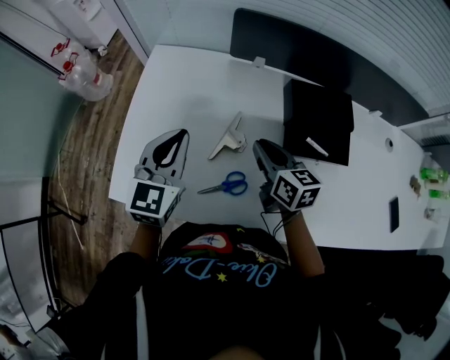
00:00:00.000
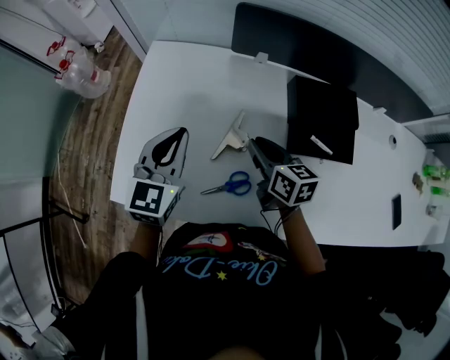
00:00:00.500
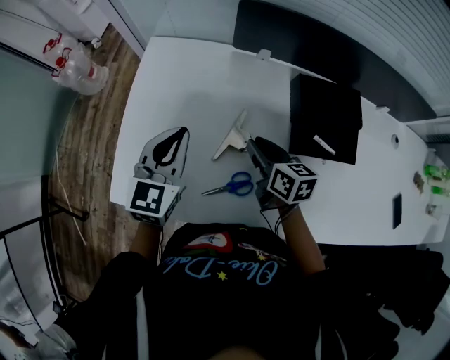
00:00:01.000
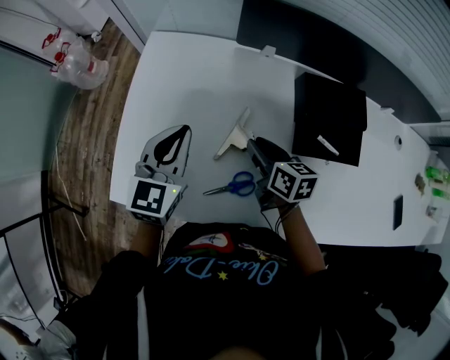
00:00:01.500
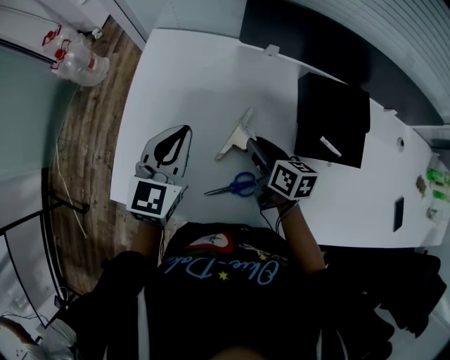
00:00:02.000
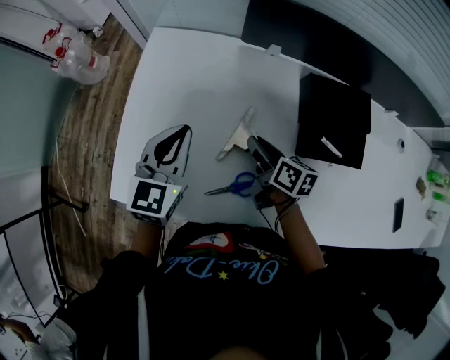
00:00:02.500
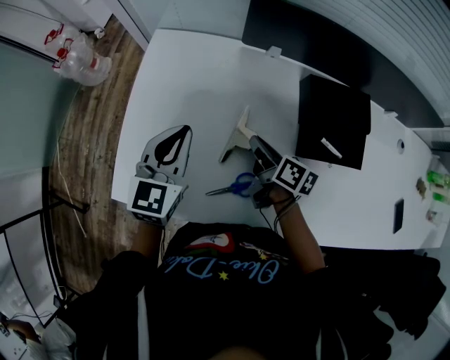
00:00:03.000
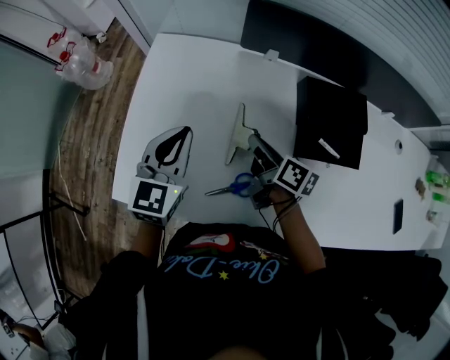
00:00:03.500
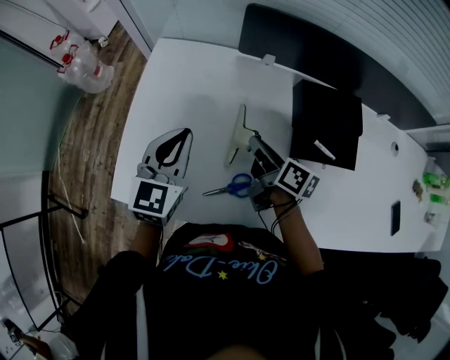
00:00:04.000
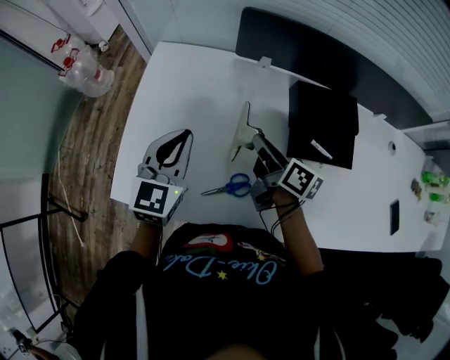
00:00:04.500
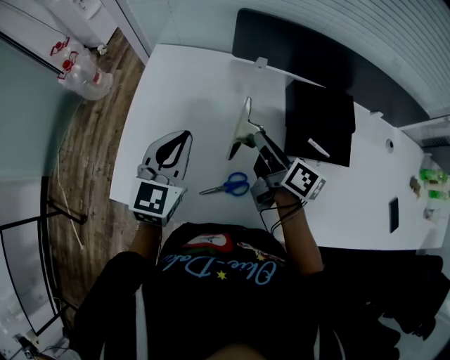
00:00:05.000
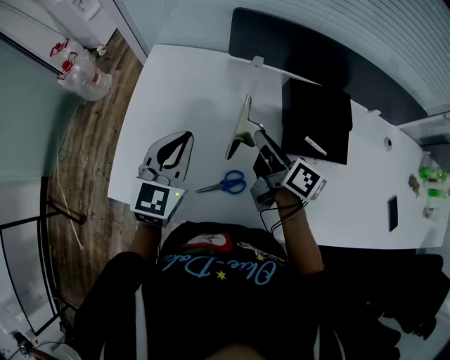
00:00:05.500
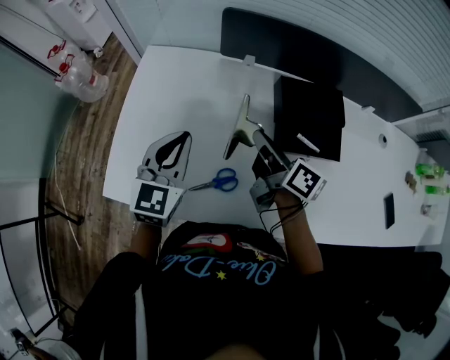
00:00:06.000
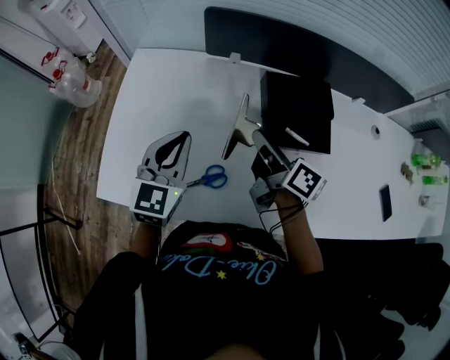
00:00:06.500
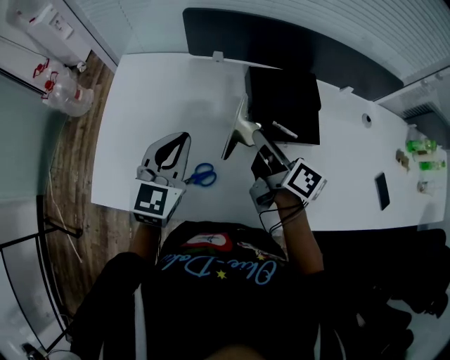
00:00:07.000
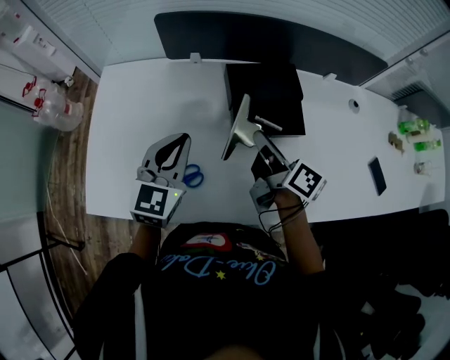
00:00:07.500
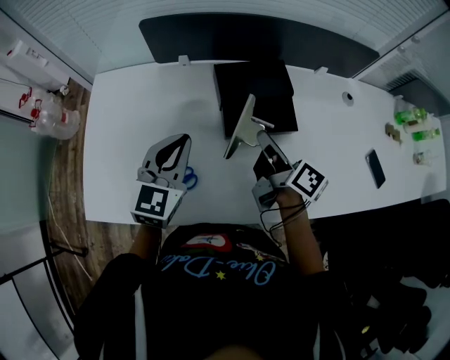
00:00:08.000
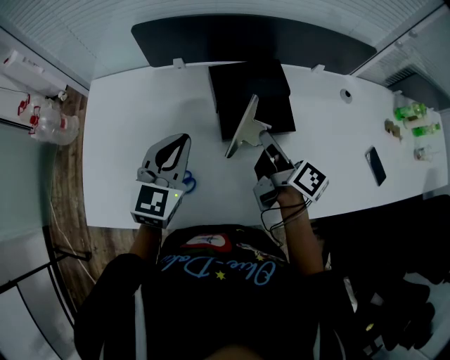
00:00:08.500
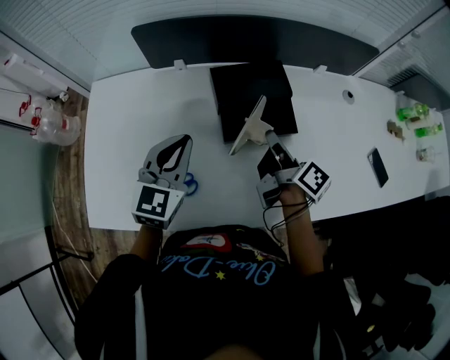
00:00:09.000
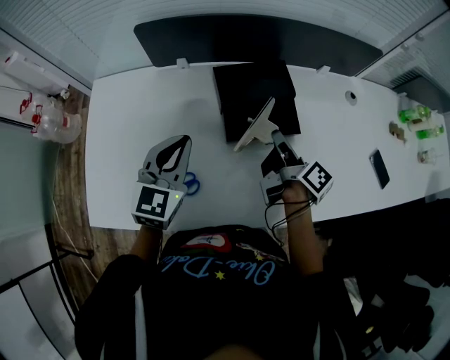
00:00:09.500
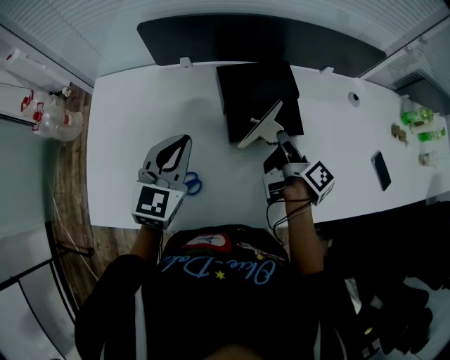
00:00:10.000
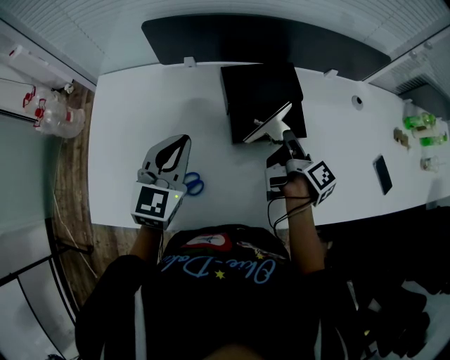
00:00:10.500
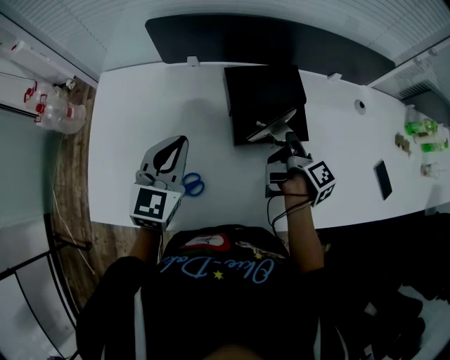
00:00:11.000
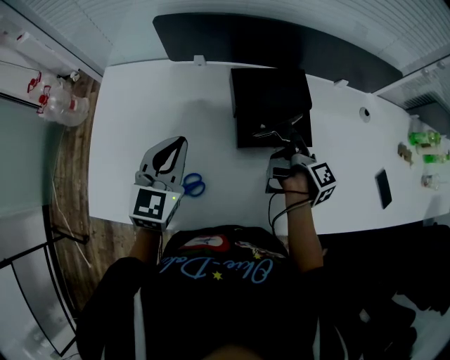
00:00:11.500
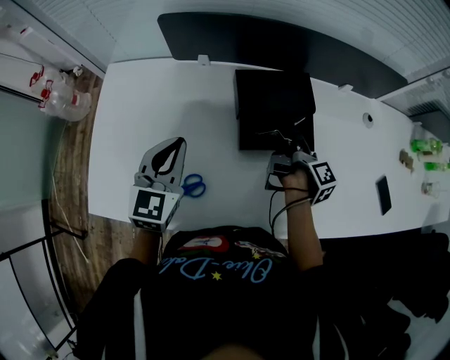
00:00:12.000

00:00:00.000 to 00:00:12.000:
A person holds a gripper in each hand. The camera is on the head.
00:00:00.000 to 00:00:02.000: The left gripper moves some 5 cm, while the right gripper travels downward by approximately 5 cm.
00:00:02.000 to 00:00:04.000: The right gripper changes its angle by approximately 20 degrees, and closes up.
00:00:04.000 to 00:00:06.000: The right gripper heads upward, covering roughly 10 cm.
00:00:06.000 to 00:00:08.000: The grippers both shift to the right by some 15 cm.
00:00:08.000 to 00:00:10.000: The right gripper is displaced to the right by about 5 cm, and rotates some 30 degrees.
00:00:10.000 to 00:00:12.000: The right gripper changes place by about 5 cm, and changes its angle by approximately 20 degrees.

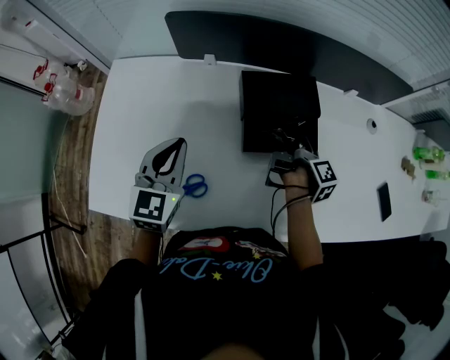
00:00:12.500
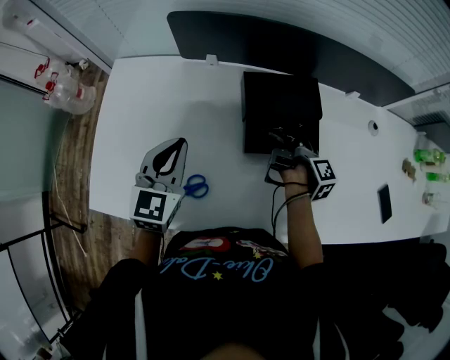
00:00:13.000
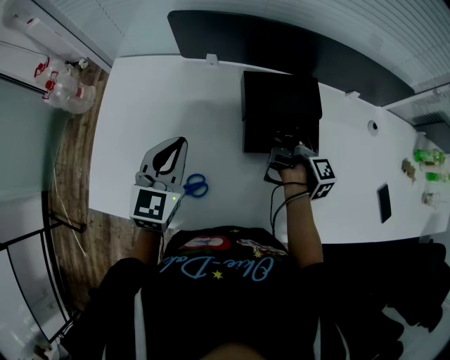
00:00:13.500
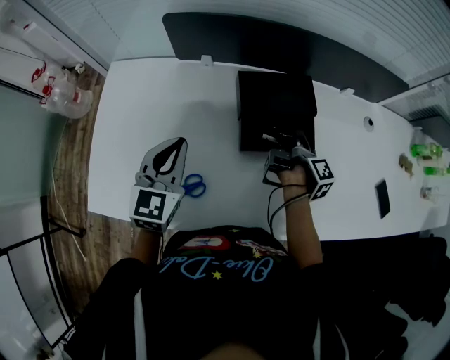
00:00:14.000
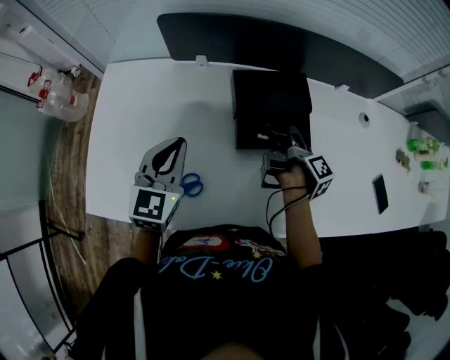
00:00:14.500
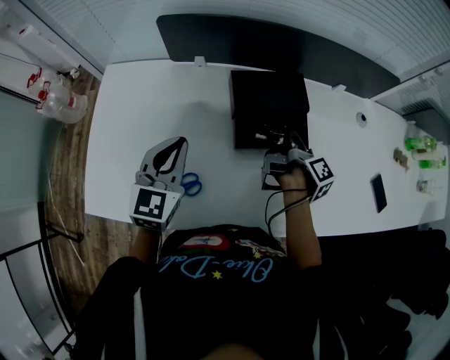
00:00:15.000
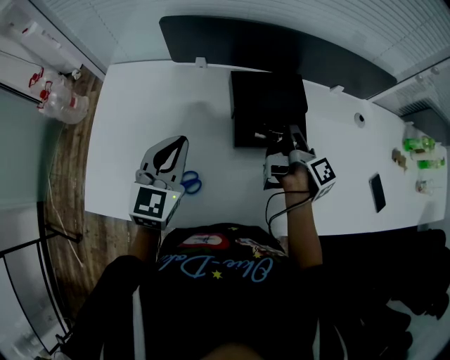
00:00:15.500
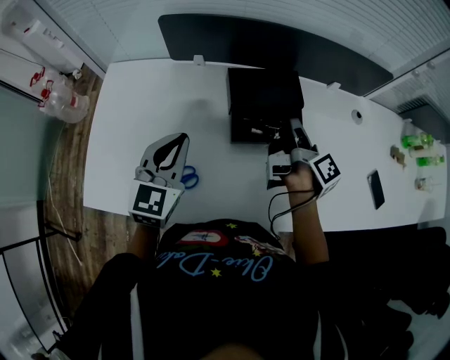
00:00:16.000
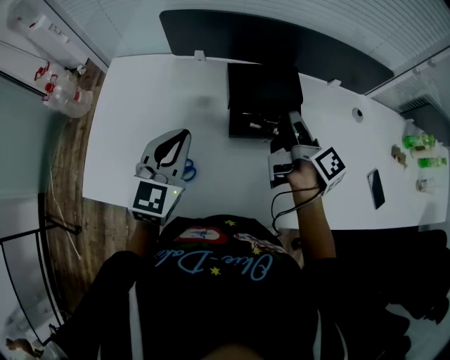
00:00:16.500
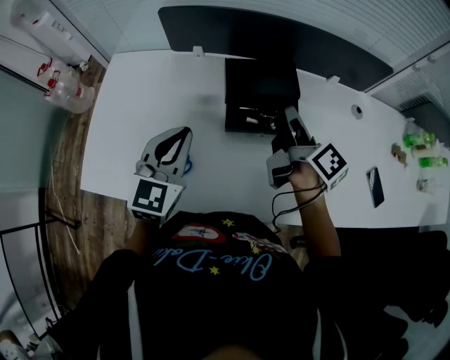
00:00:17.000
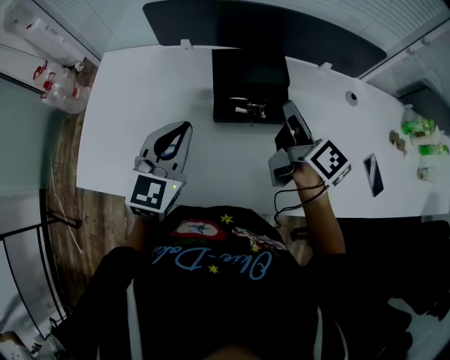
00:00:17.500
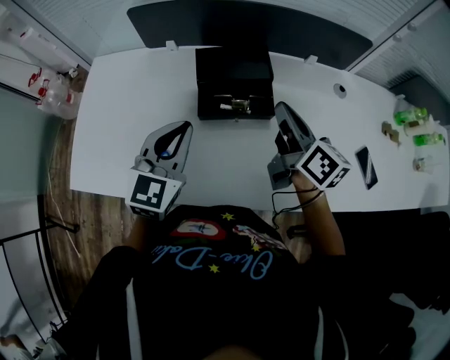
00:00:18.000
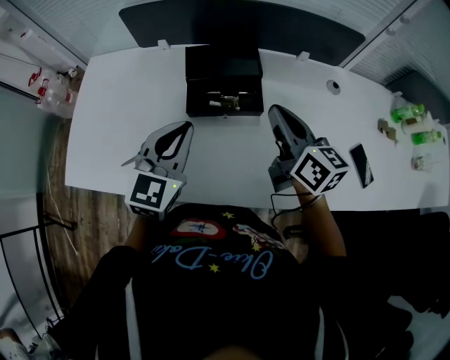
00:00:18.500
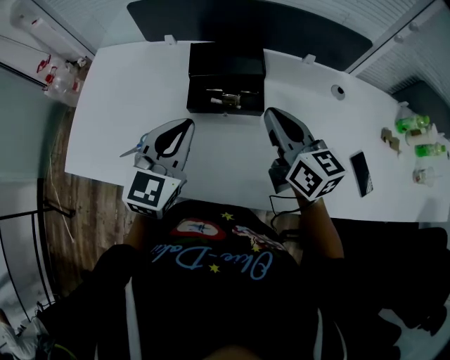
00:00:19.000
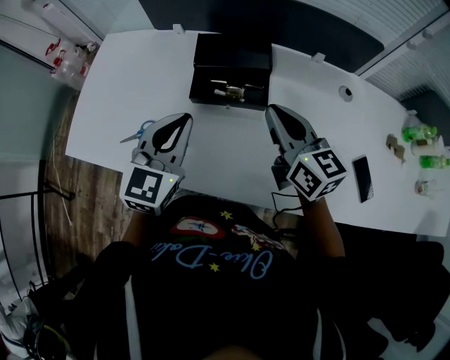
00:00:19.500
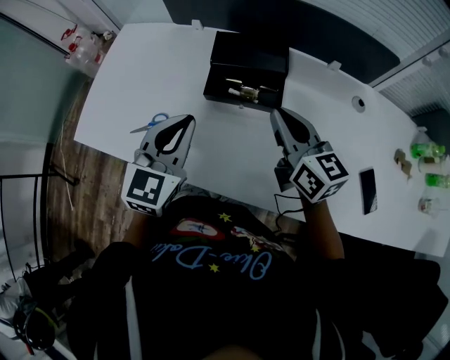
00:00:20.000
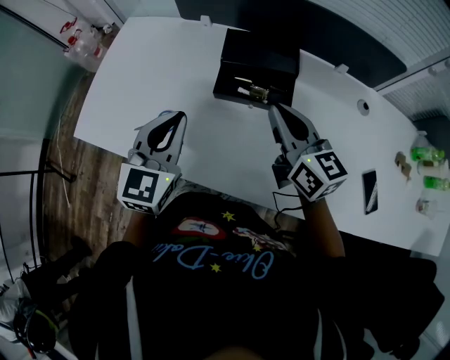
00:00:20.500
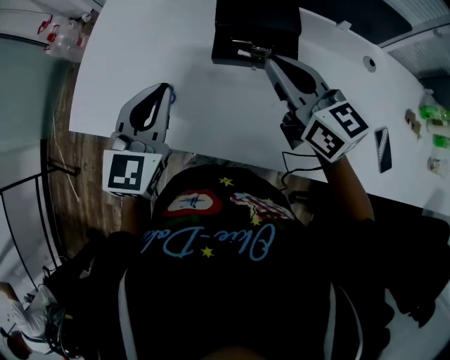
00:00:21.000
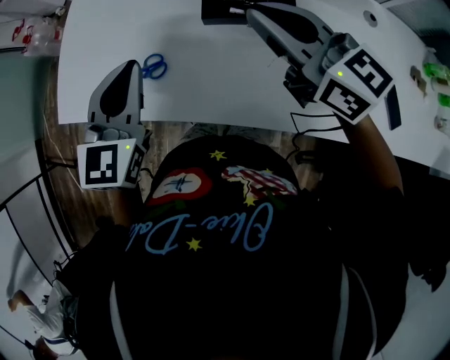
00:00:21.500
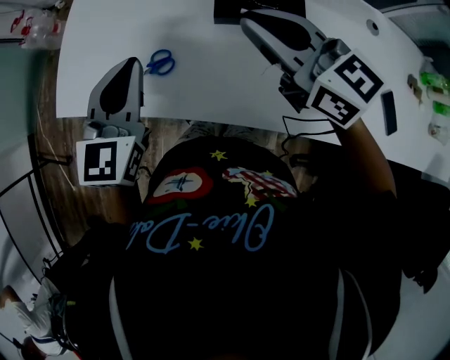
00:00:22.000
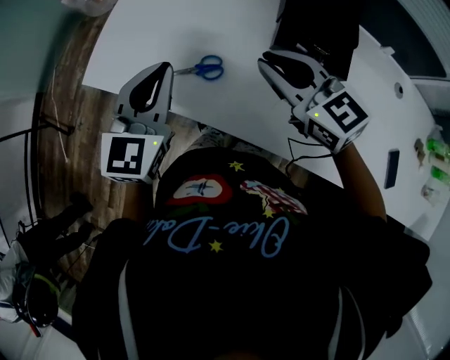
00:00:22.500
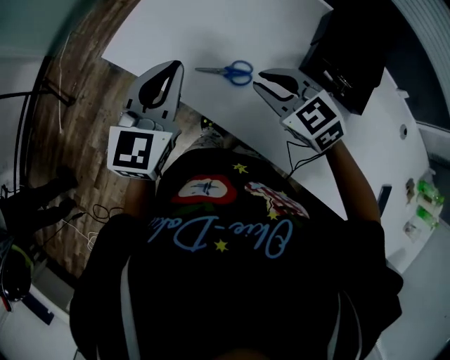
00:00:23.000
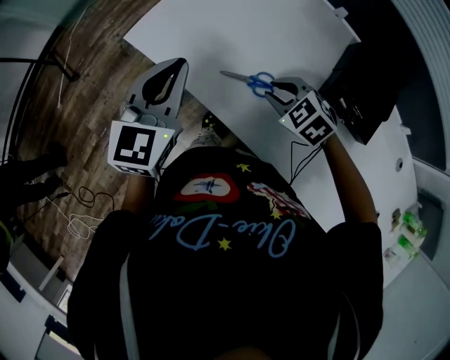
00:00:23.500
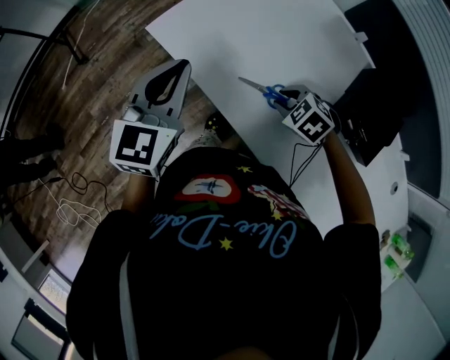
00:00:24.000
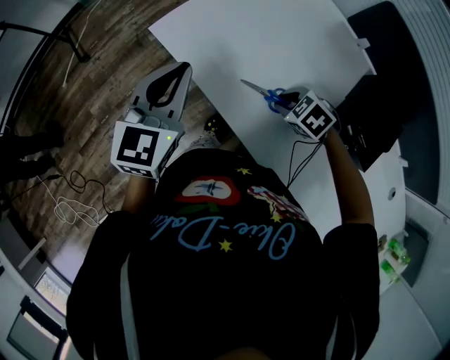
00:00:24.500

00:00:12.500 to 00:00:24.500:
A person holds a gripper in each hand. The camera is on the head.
00:00:12.500 to 00:00:14.500: The right gripper opens.
00:00:14.500 to 00:00:16.500: The right gripper goes approximately 10 cm upward, rotates some 30 degrees, and closes. The left gripper moves about 5 cm.
00:00:16.500 to 00:00:18.500: The right gripper travels backward and to the right by about 10 cm, and rotates around the line of its fingers by about 50 degrees, counterclockwise from behind. The left gripper goes some 15 cm to the right.
00:00:18.500 to 00:00:20.500: Both grippers travel together to the left, about 5 cm.
00:00:20.500 to 00:00:22.500: Both grippers move to the left, some 15 cm. The right gripper rotates about 30 degrees.
00:00:22.500 to 00:00:24.500: The left gripper shifts by roughly 15 cm, and swivels about 20 degrees. The right gripper heads downward, covering about 20 cm, and angles its fingers downward, by about 50 degrees.

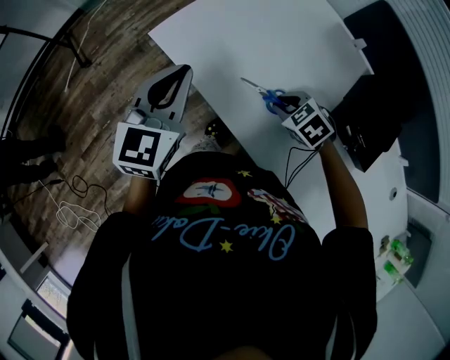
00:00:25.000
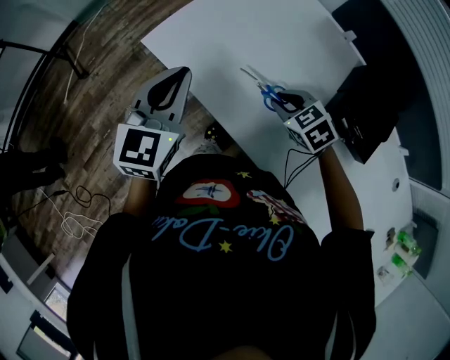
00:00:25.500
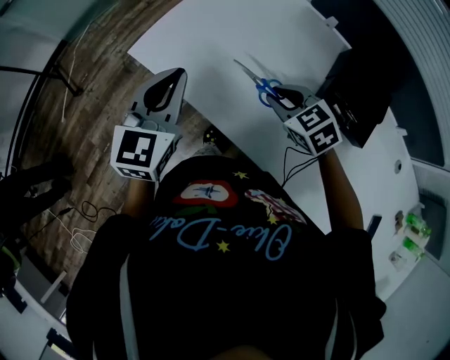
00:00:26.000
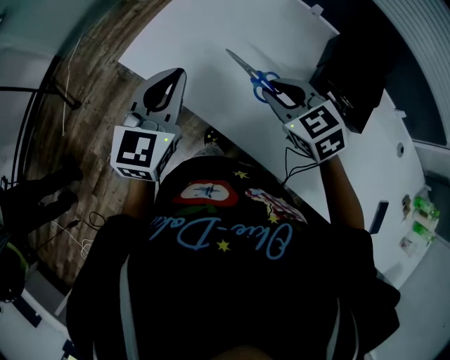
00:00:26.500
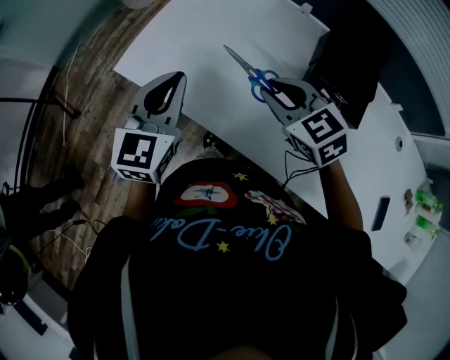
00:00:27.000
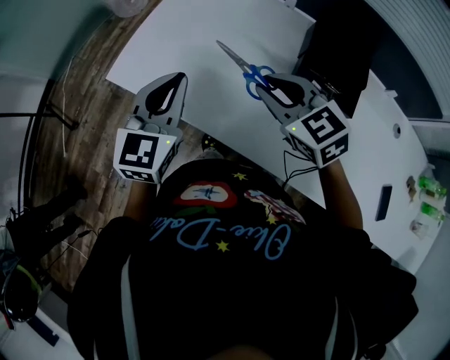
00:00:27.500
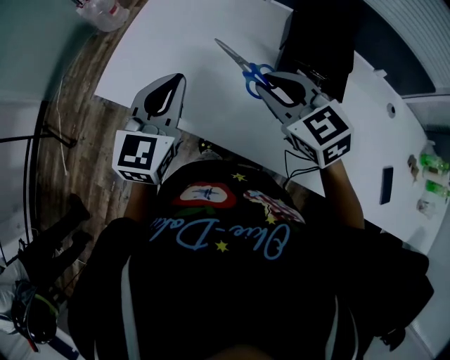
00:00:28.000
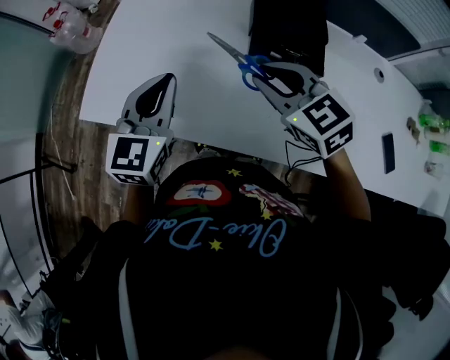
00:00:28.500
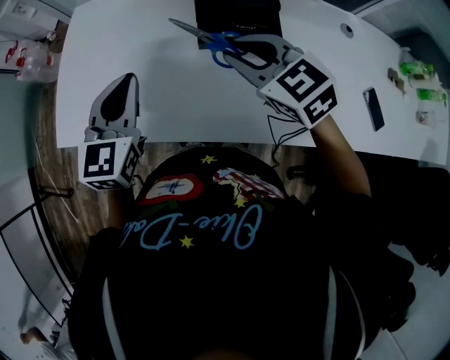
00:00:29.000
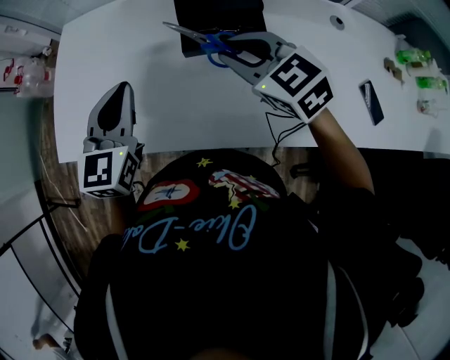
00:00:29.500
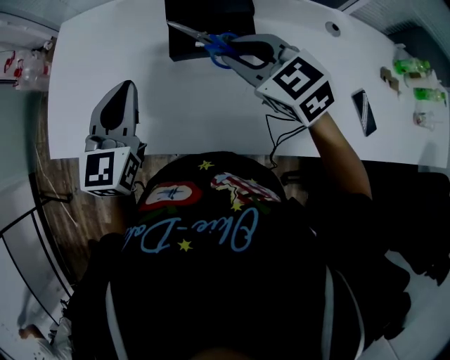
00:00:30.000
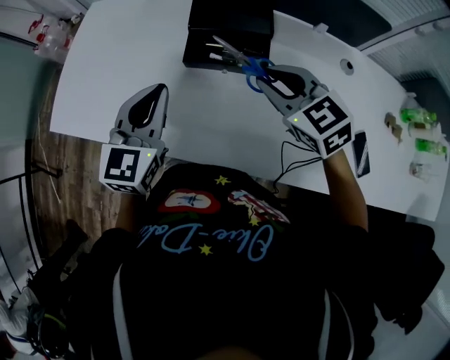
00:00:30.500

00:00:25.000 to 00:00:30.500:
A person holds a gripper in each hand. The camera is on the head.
00:00:25.000 to 00:00:27.000: The left gripper is displaced to the right by about 10 cm. The right gripper moves upward, approximately 15 cm, and changes its angle by about 40 degrees.
00:00:27.000 to 00:00:28.500: Both grippers move to the right, some 15 cm.
00:00:28.500 to 00:00:30.500: The two grippers go some 15 cm to the right.
